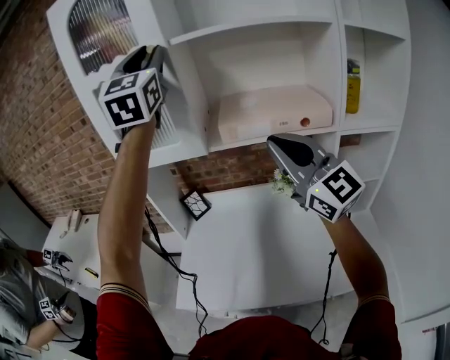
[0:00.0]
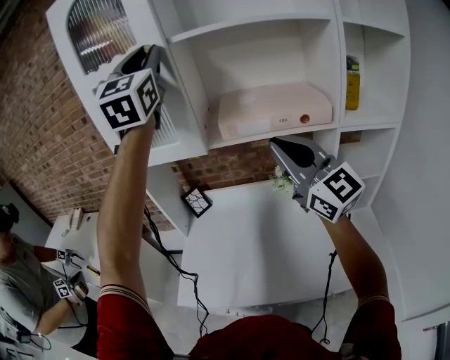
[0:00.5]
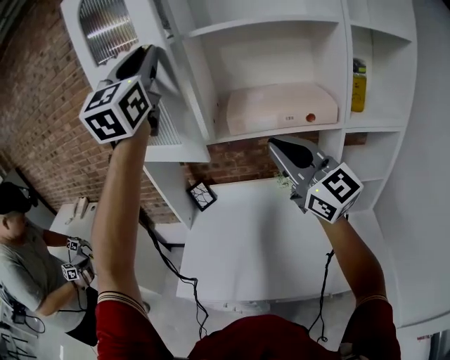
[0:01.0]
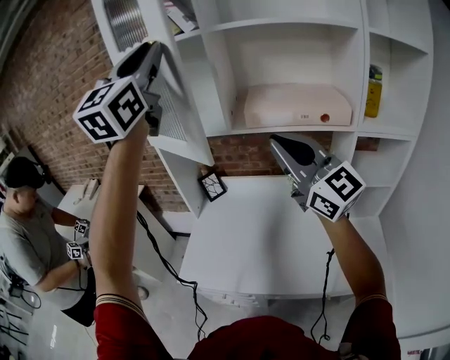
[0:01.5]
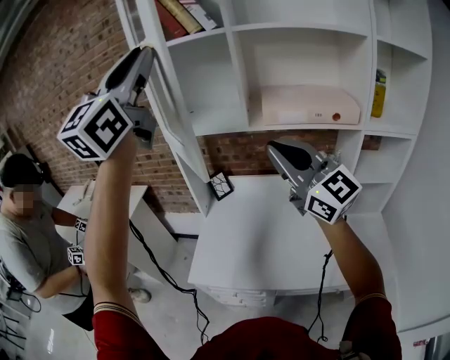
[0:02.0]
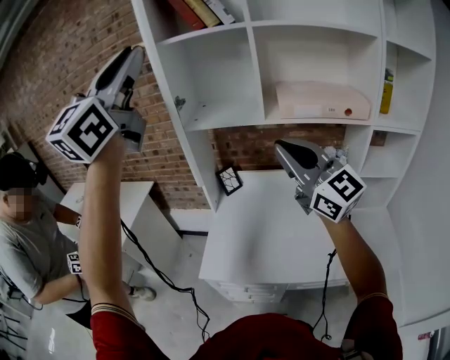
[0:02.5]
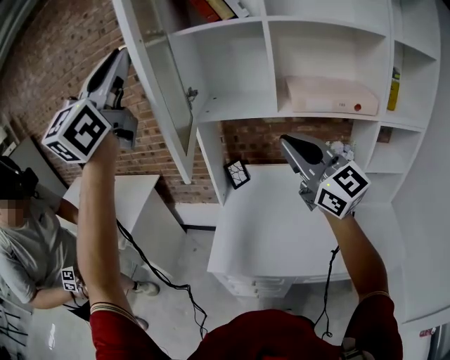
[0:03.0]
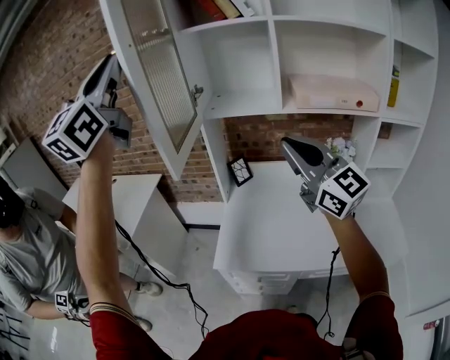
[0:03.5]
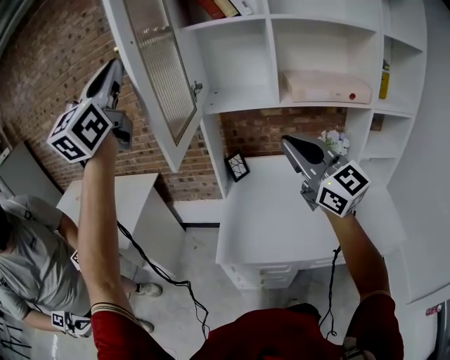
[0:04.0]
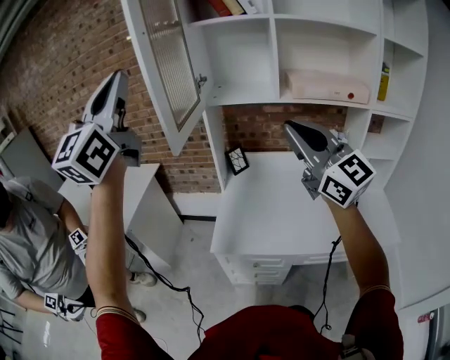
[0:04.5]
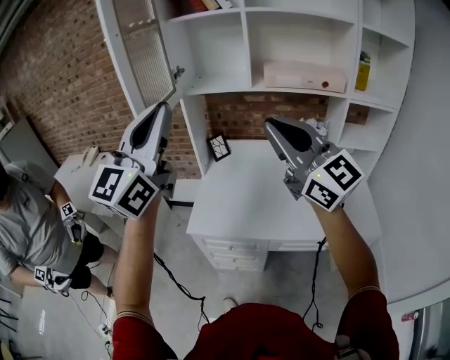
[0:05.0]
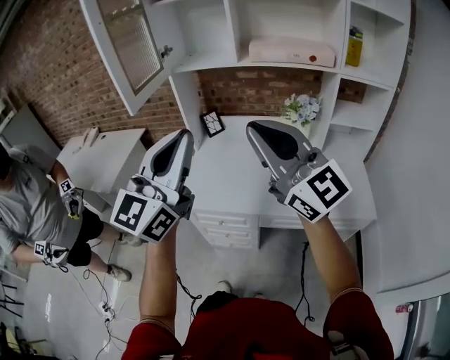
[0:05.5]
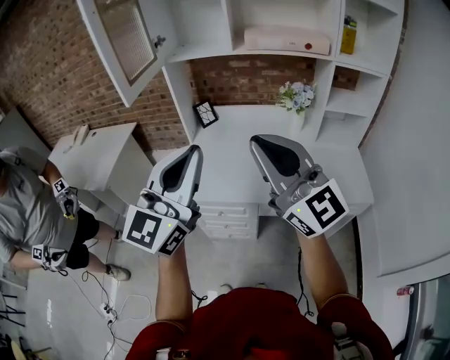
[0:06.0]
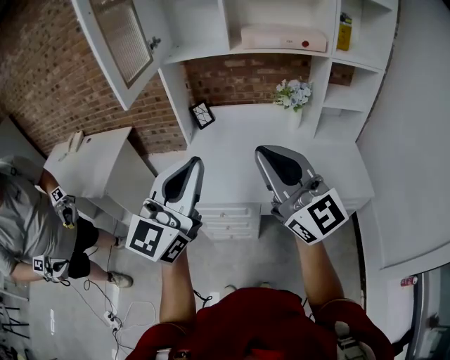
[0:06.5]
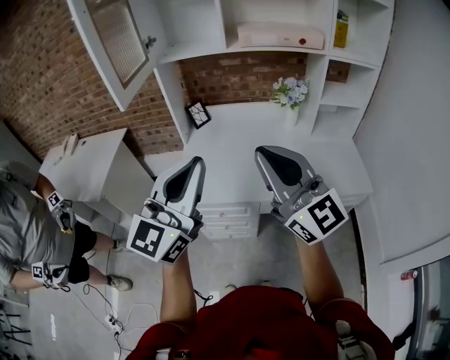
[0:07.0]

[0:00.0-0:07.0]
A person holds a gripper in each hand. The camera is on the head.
0:00.0 to 0:02.0: The left gripper moves backward and to the left, roughly 25 cm. The right gripper is displaced to the left by some 10 cm.
0:02.0 to 0:03.5: The left gripper travels to the left by approximately 20 cm, while the right gripper travels to the left by roughly 10 cm.
0:03.5 to 0:05.0: The right gripper heads backward, covering approximately 15 cm; the left gripper moves backward, downward and to the right, approximately 25 cm.
0:05.0 to 0:07.0: The left gripper heads downward, backward and to the right, covering roughly 20 cm. The right gripper heads downward and backward, covering approximately 15 cm.

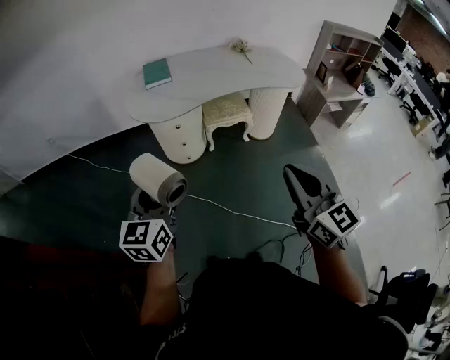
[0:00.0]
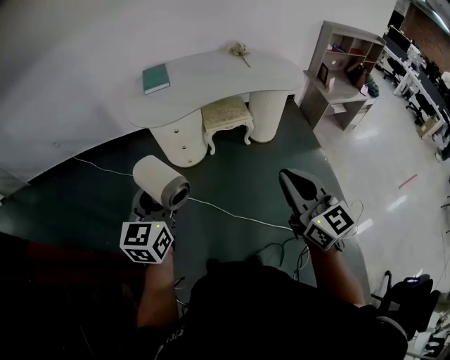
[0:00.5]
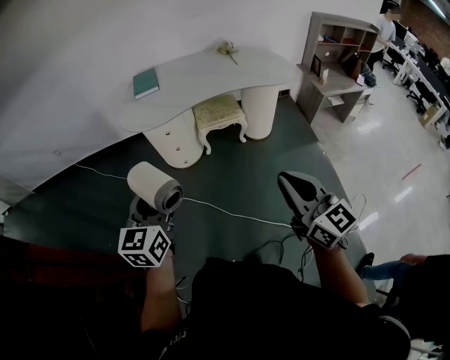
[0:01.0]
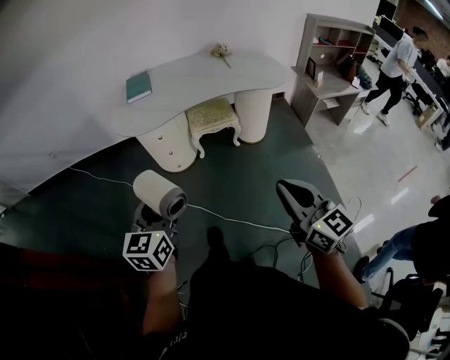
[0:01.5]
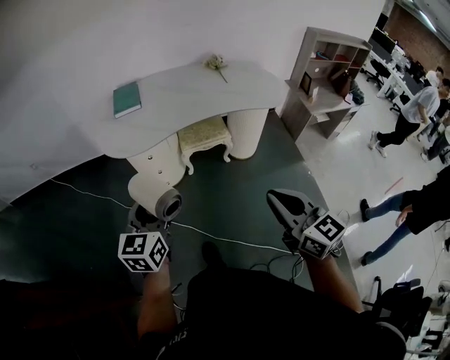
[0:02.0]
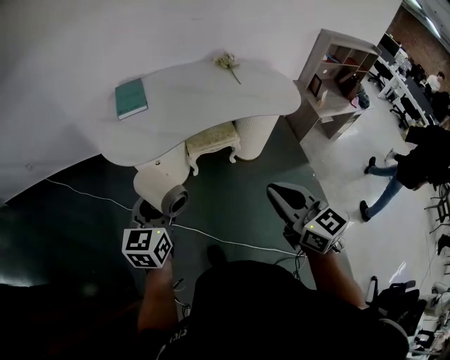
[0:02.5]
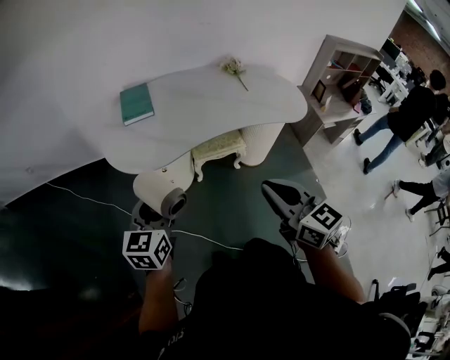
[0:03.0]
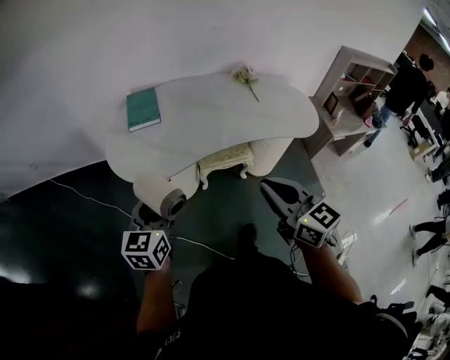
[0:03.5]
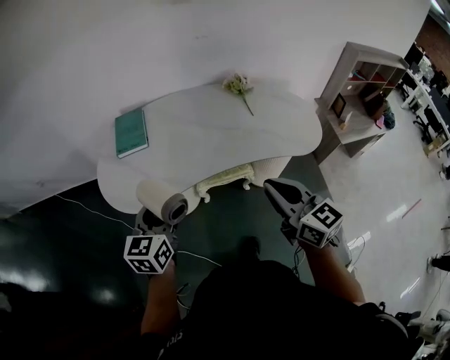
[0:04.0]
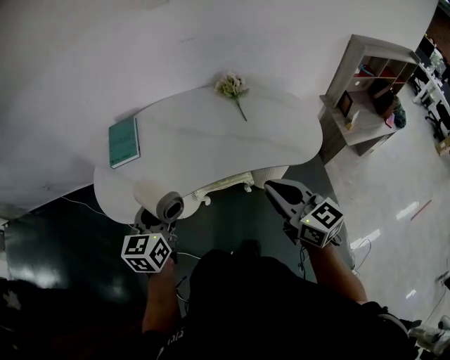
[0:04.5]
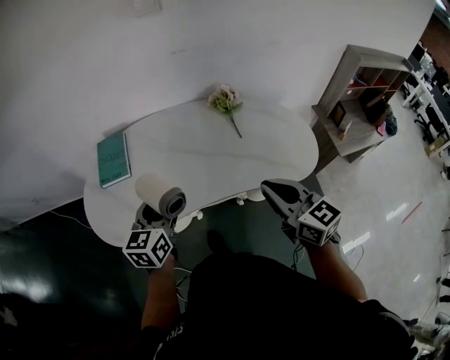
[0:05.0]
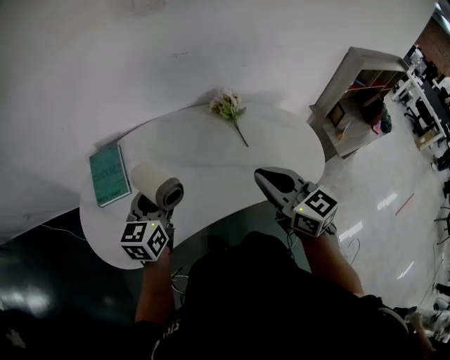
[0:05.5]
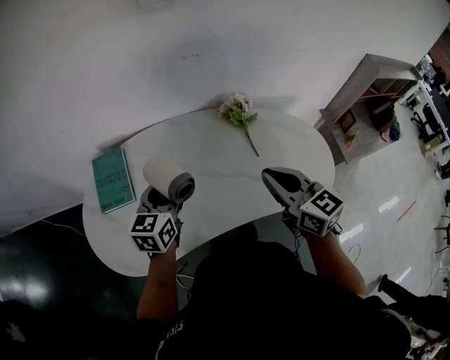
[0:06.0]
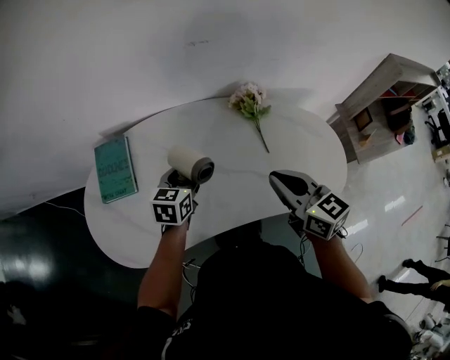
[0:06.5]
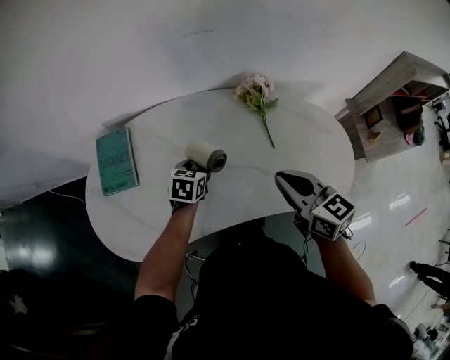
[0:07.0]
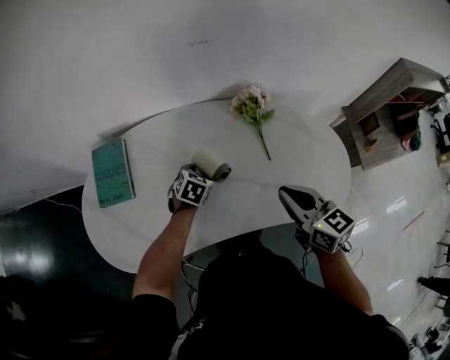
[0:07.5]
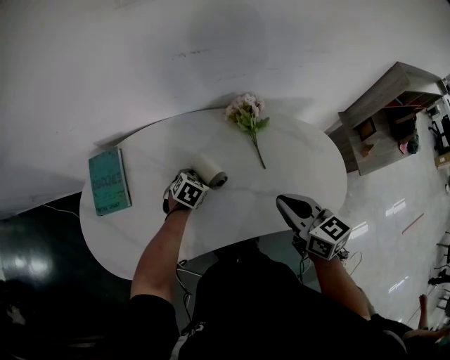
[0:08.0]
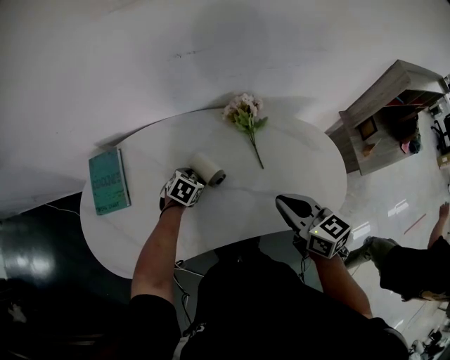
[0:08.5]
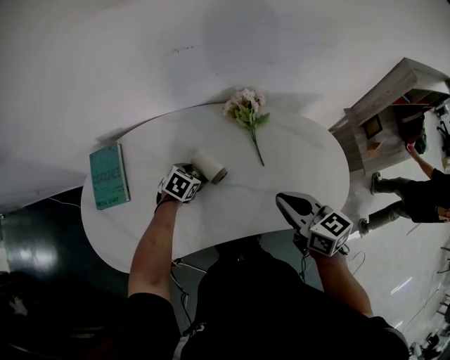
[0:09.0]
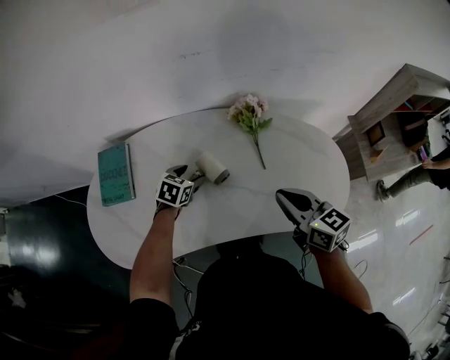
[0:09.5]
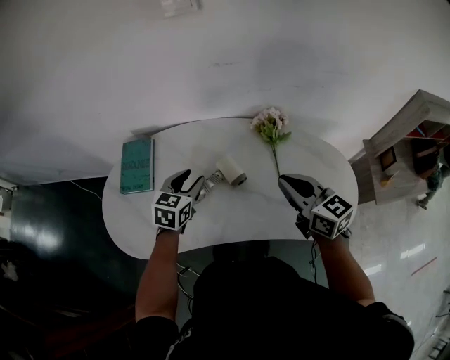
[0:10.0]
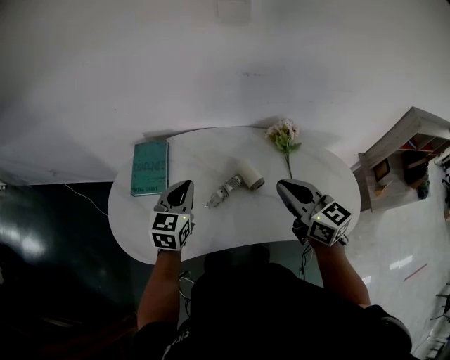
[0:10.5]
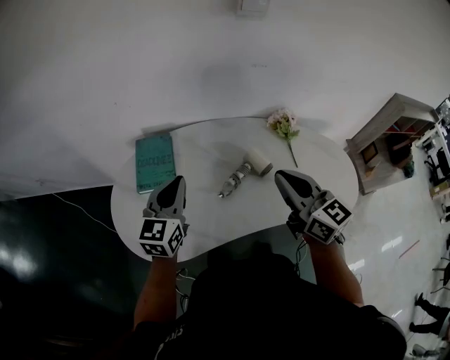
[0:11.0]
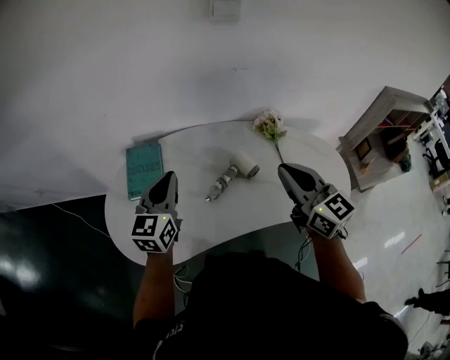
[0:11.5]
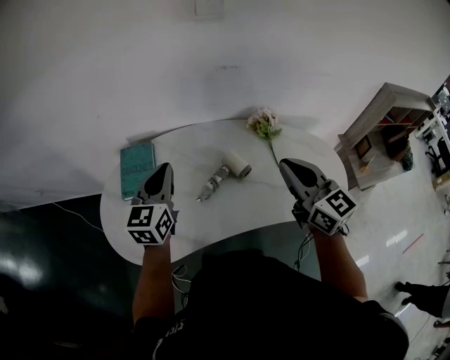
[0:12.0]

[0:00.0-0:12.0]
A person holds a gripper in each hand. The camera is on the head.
0:00.0 to 0:02.0: The right gripper goes approximately 15 cm to the right, forward and downward, while the left gripper goes roughly 15 cm to the right and forward.
0:02.0 to 0:04.0: The two grippers go some 35 cm forward.
0:04.0 to 0:06.0: Both grippers travel together forward, roughly 30 cm.
0:06.0 to 0:08.0: The right gripper heads downward and to the right, covering roughly 10 cm, while the left gripper travels downward by approximately 25 cm, and tilts its fingers roughly 40 degrees downward.
0:08.0 to 0:10.0: The right gripper moves upward, about 5 cm. Meanwhile the left gripper shifts some 20 cm upward, and changes its angle by some 40 degrees.
0:10.0 to 0:12.0: The left gripper heads upward and to the left, covering roughly 20 cm, swivels some 30 degrees, and closes its fingers. Meanwhile the right gripper heads upward, to the left and backward, covering approximately 15 cm, and rotates approximately 20 degrees.

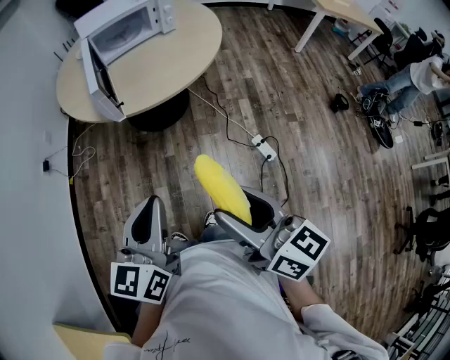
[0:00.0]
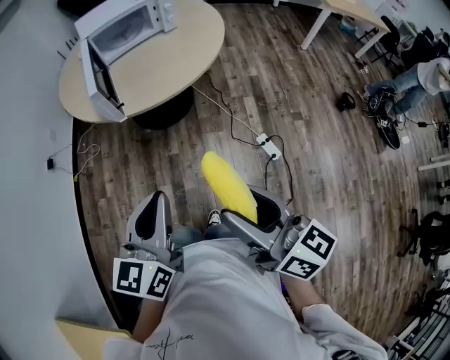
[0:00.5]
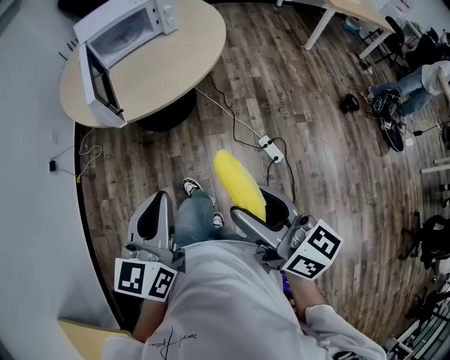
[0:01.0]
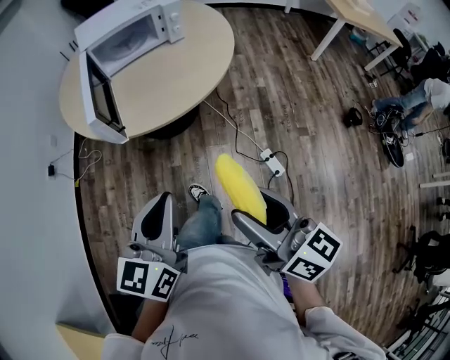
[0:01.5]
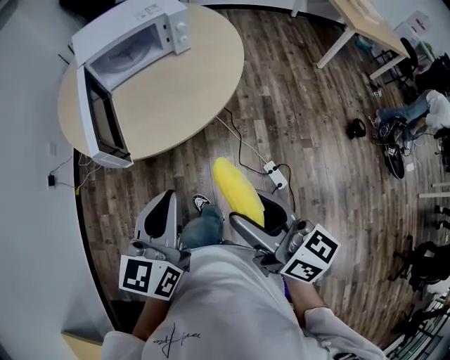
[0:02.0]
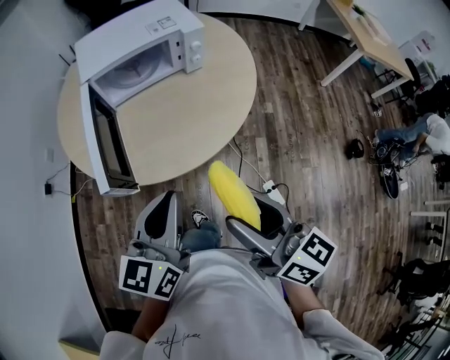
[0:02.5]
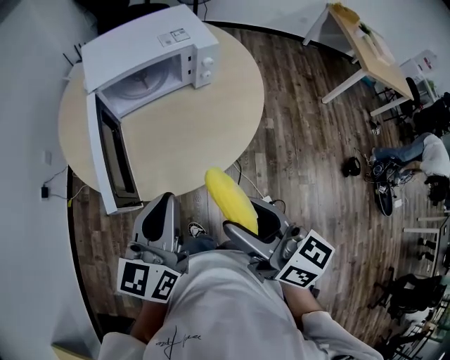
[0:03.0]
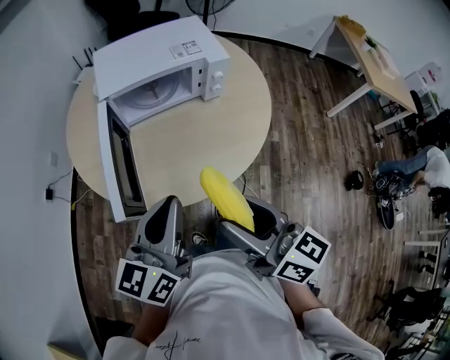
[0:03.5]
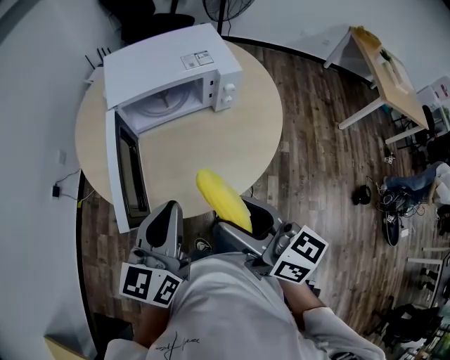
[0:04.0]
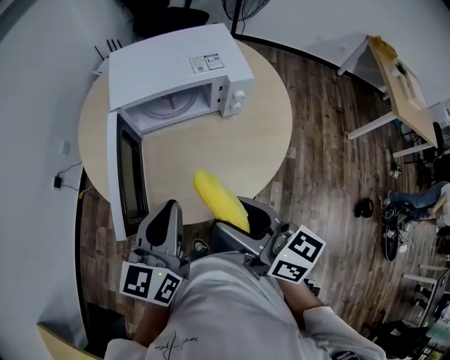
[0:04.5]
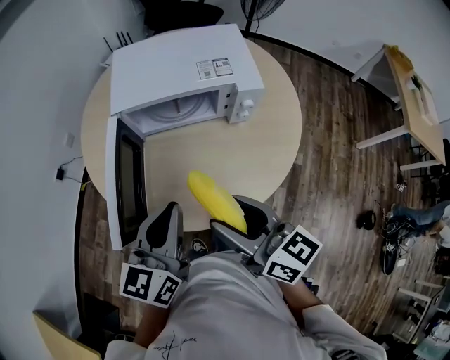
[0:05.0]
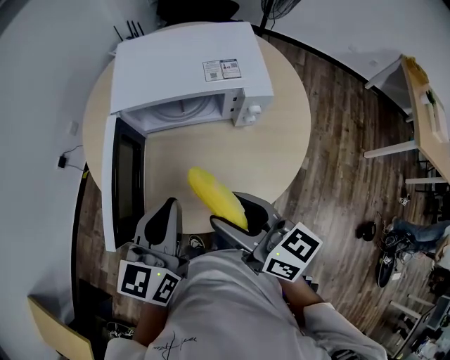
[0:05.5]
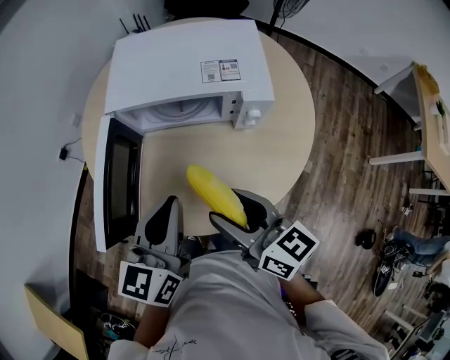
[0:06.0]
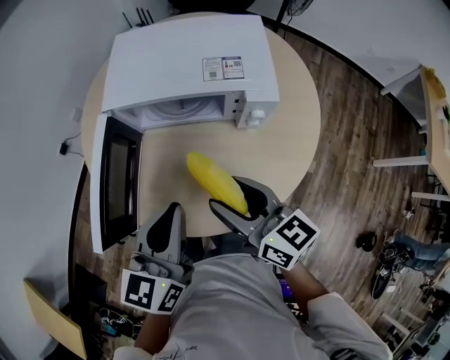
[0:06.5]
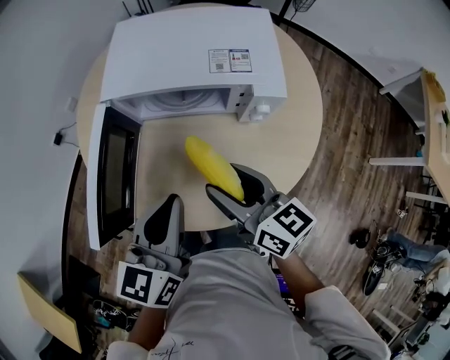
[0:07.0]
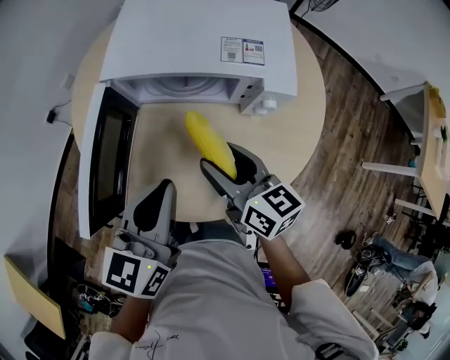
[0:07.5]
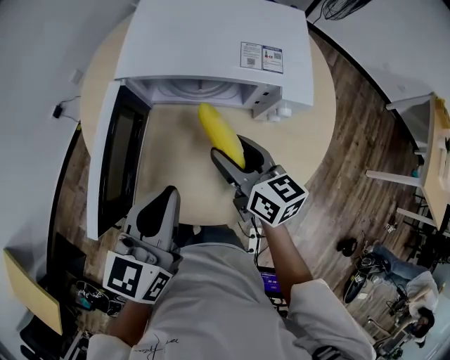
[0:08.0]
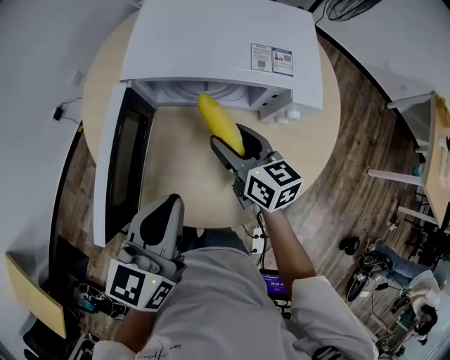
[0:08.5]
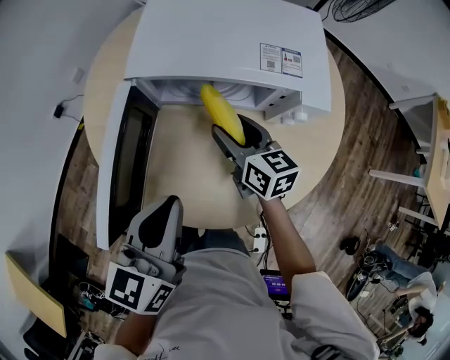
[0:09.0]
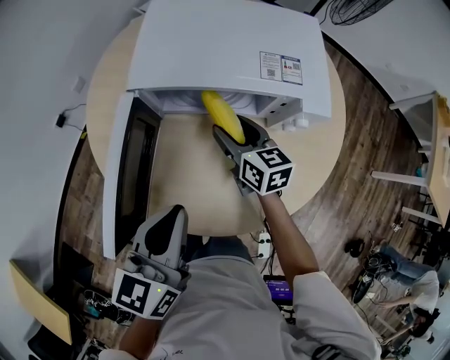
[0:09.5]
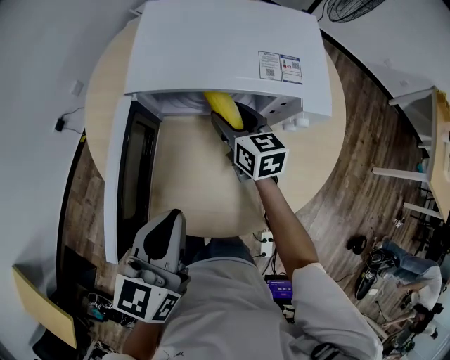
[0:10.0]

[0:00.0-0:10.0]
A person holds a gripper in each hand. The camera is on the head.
0:00.0 to 0:02.0: The two grippers go approximately 25 cm forward.
0:02.0 to 0:04.0: Both grippers move forward, roughly 25 cm.
0:04.0 to 0:06.0: The left gripper travels forward and to the right by roughly 15 cm; the right gripper shifts about 20 cm forward, to the right and downward.
0:06.0 to 0:08.0: The right gripper heads forward and downward, covering some 15 cm.
0:08.0 to 0:10.0: The right gripper heads forward and downward, covering some 15 cm.
